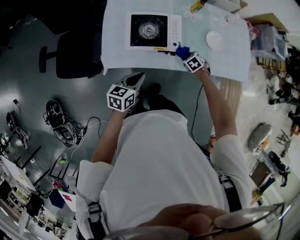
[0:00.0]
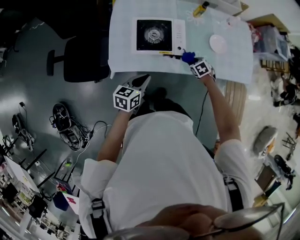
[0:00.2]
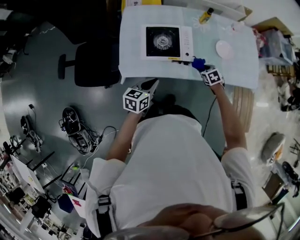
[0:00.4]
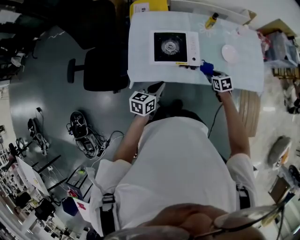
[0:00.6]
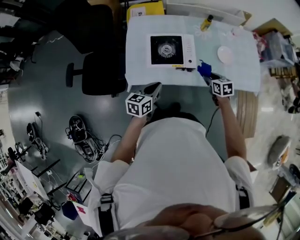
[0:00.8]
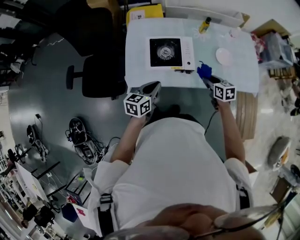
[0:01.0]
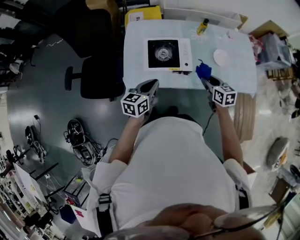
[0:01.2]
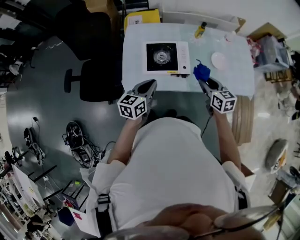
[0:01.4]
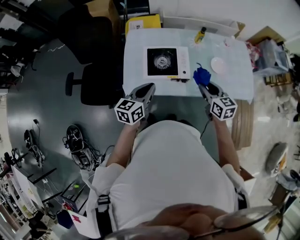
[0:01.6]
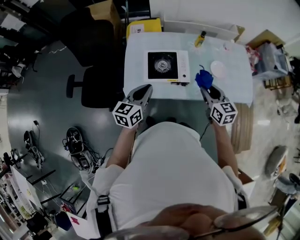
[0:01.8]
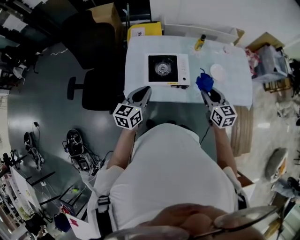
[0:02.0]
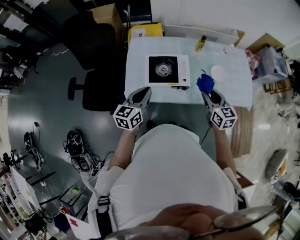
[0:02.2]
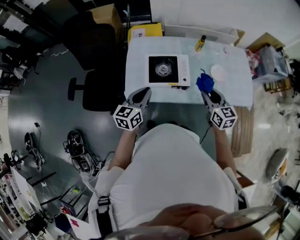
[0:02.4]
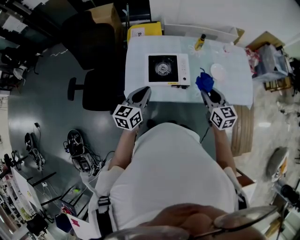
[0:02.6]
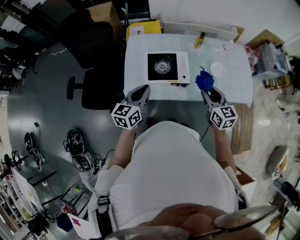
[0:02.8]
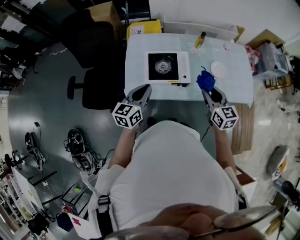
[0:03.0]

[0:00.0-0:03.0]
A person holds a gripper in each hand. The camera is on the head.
0:00.0 to 0:01.6: The left gripper heads upward, covering some 15 cm. Meanwhile the right gripper moves upward, some 30 cm, and angles its fingers upward, by roughly 50 degrees.
0:01.6 to 0:03.0: The grippers stay close to where they were, moving slightly.

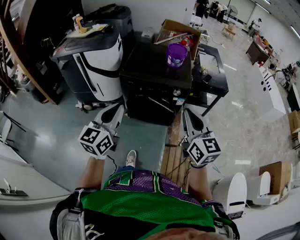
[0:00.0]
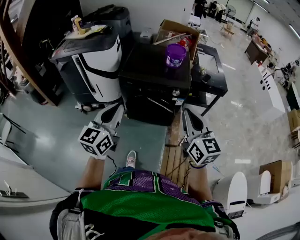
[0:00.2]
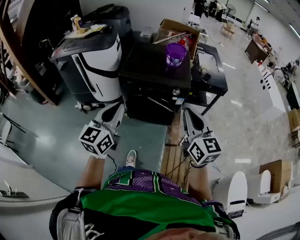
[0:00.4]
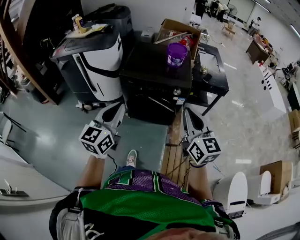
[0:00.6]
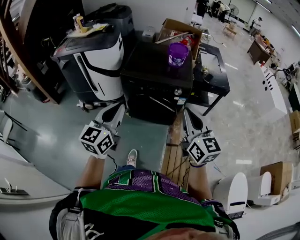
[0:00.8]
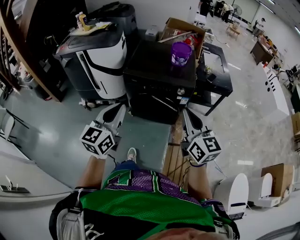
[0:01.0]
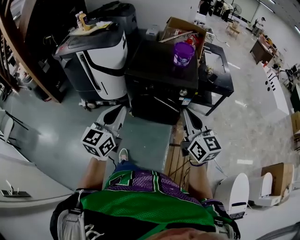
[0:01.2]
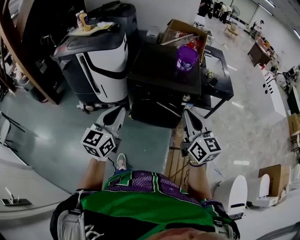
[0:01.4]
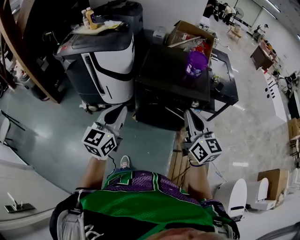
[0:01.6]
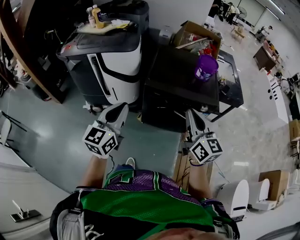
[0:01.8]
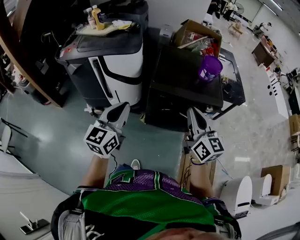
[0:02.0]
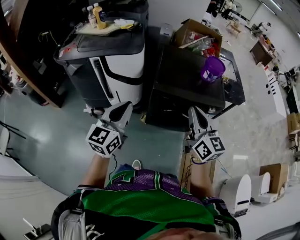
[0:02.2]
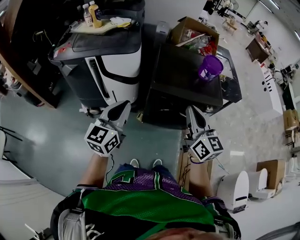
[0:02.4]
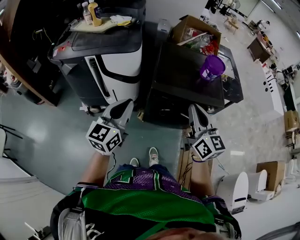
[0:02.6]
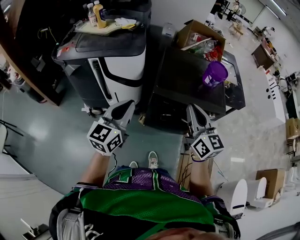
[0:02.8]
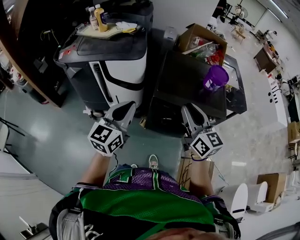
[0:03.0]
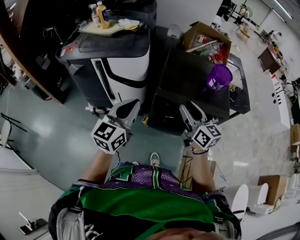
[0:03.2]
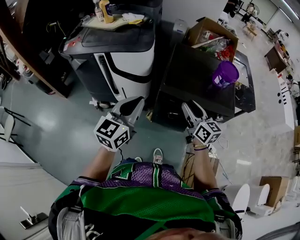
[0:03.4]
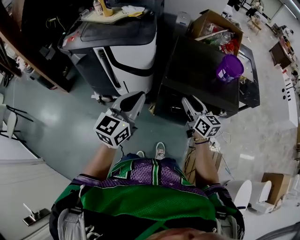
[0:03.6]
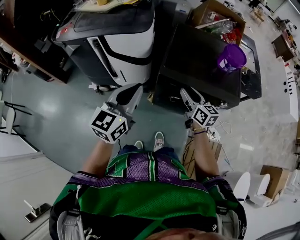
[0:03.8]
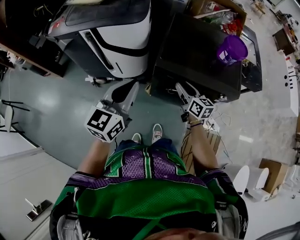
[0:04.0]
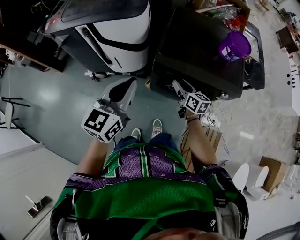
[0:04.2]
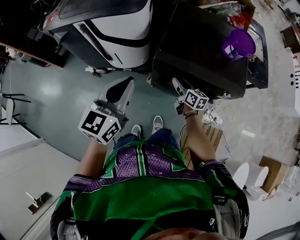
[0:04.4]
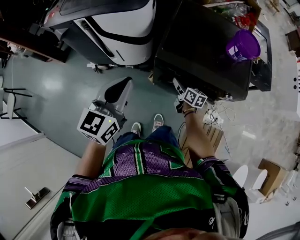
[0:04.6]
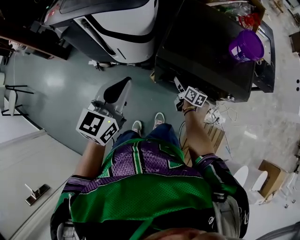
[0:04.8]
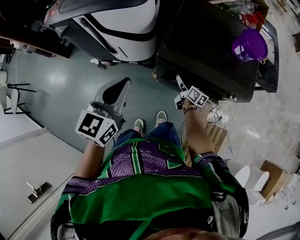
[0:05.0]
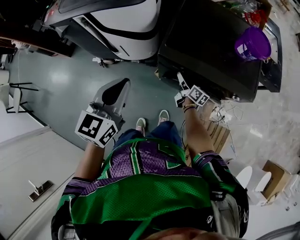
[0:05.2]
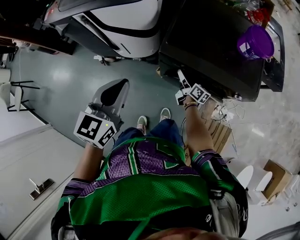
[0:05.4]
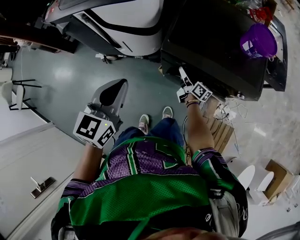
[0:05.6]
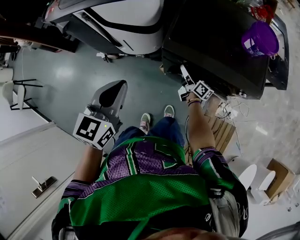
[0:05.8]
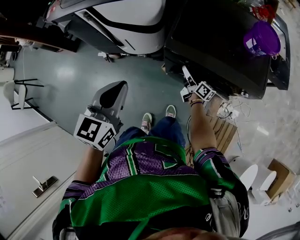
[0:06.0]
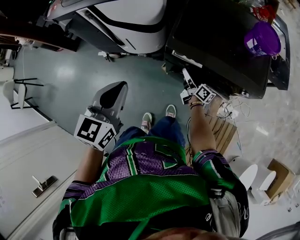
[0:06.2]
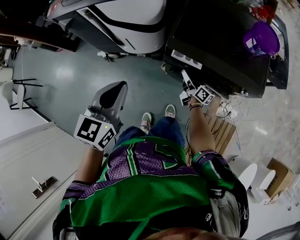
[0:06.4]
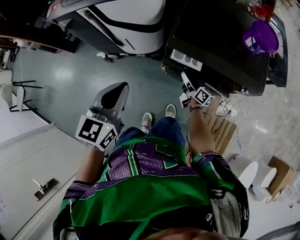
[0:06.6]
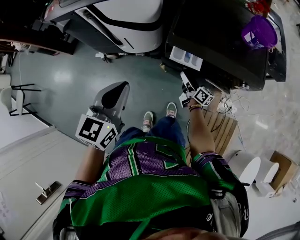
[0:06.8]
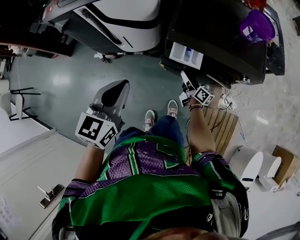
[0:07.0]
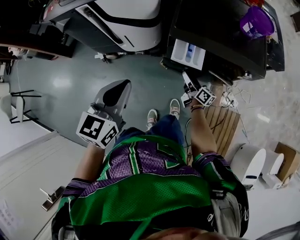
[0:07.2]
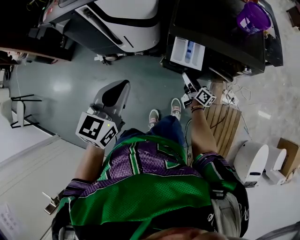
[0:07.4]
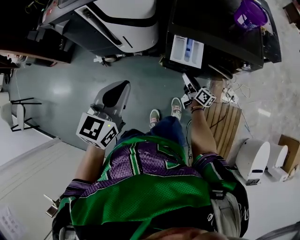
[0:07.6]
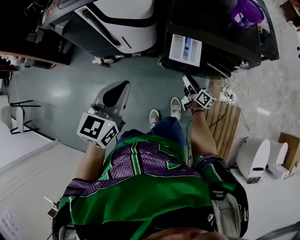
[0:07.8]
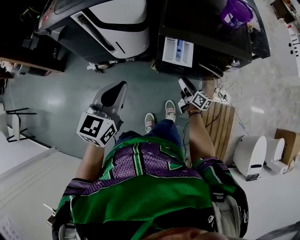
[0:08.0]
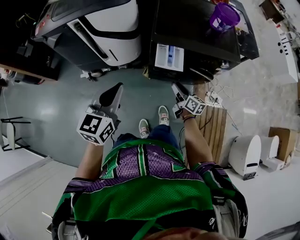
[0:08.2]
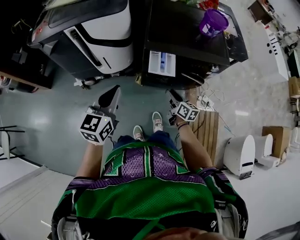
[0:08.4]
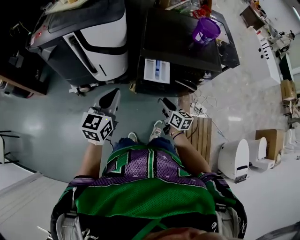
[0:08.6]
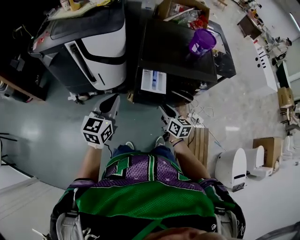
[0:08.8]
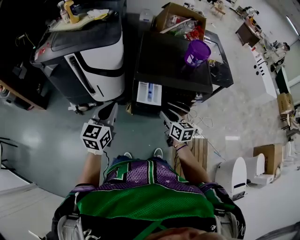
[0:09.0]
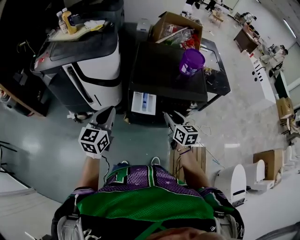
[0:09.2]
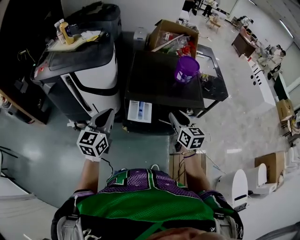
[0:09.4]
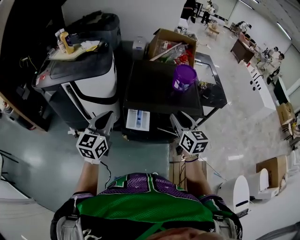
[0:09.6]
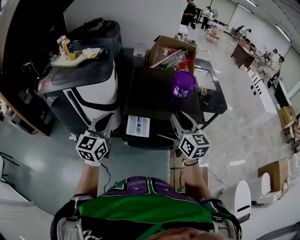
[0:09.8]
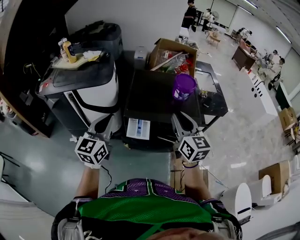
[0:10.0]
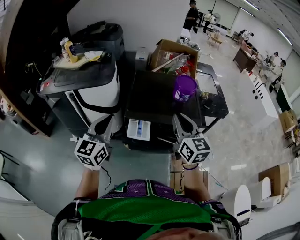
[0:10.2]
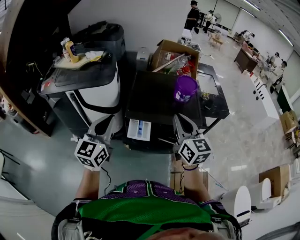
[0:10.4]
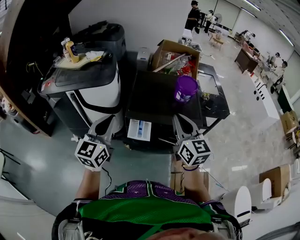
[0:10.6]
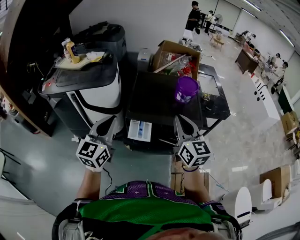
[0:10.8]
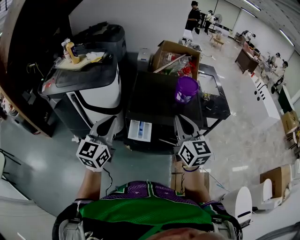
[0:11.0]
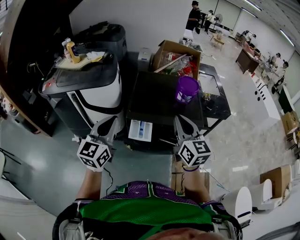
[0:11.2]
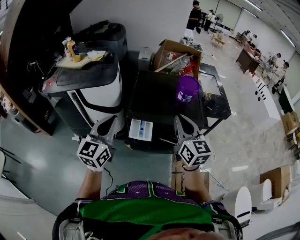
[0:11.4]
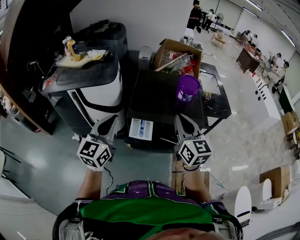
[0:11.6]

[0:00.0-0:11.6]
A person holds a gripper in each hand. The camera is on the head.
0:00.0 to 0:01.4: Both grippers move to the left and forward, approximately 10 cm.
0:01.4 to 0:02.8: The two grippers go approximately 30 cm to the left and forward.
0:02.8 to 0:04.4: The right gripper travels downward and forward by roughly 40 cm, rotates some 40 degrees, and opens, while the left gripper heads to the right, downward and forward, covering roughly 10 cm.
0:04.4 to 0:05.8: The left gripper goes about 5 cm downward. Meanwhile the right gripper travels downward by approximately 10 cm, and changes its angle by approximately 30 degrees.
0:05.8 to 0:07.2: The right gripper travels backward by roughly 10 cm; the left gripper moves to the left and backward, approximately 10 cm.
0:07.2 to 0:08.8: The right gripper heads upward and backward, covering roughly 20 cm, and rotates about 30 degrees.
0:08.8 to 0:10.2: The right gripper shifts some 35 cm upward and to the right, turns by about 30 degrees, and closes its fingers; the left gripper shifts approximately 20 cm upward and to the right.
0:10.2 to 0:11.6: Neither gripper changes place.

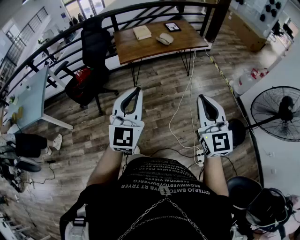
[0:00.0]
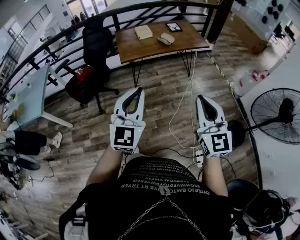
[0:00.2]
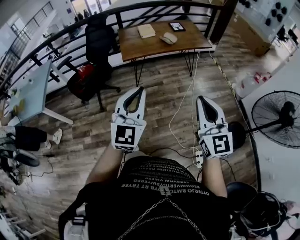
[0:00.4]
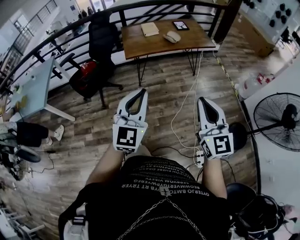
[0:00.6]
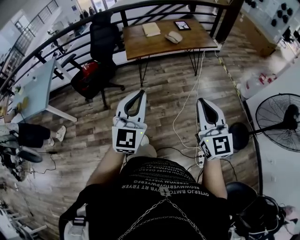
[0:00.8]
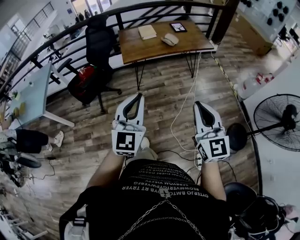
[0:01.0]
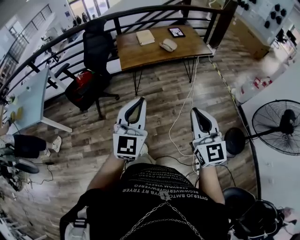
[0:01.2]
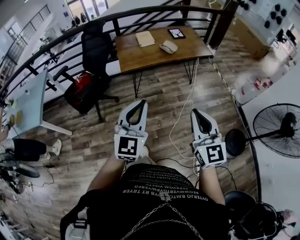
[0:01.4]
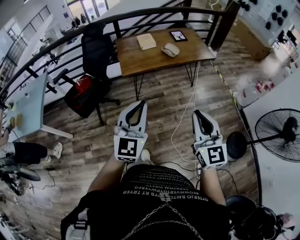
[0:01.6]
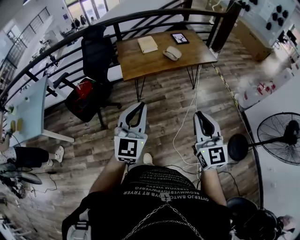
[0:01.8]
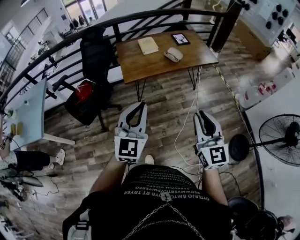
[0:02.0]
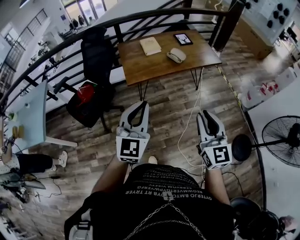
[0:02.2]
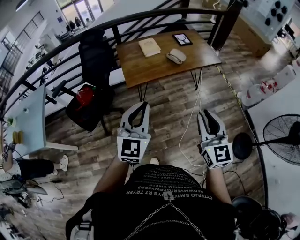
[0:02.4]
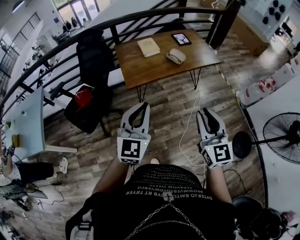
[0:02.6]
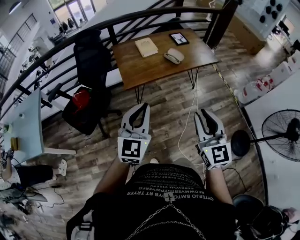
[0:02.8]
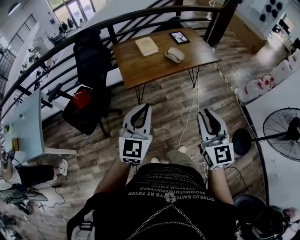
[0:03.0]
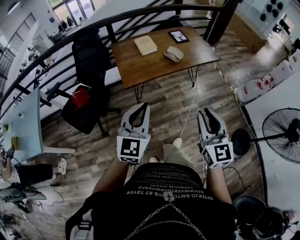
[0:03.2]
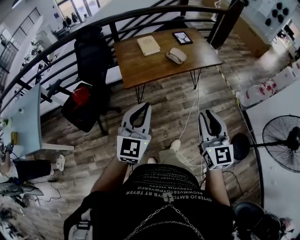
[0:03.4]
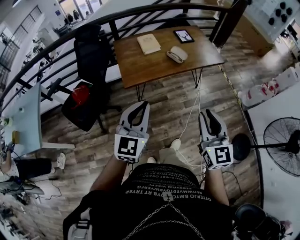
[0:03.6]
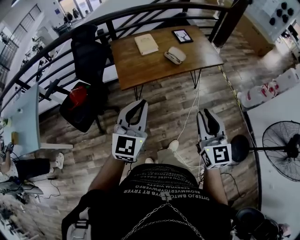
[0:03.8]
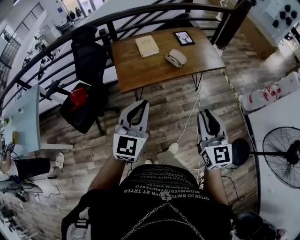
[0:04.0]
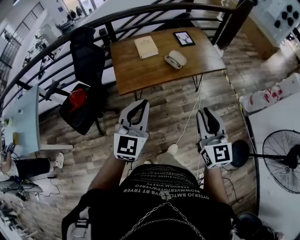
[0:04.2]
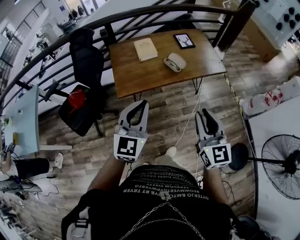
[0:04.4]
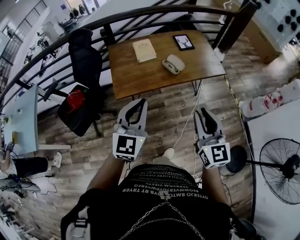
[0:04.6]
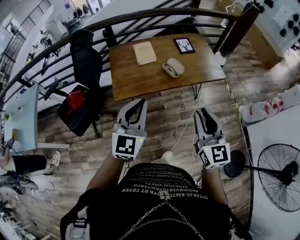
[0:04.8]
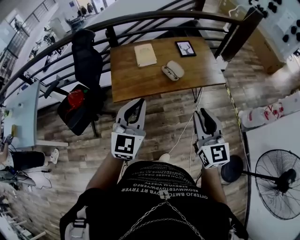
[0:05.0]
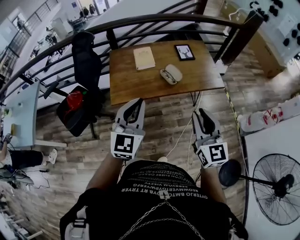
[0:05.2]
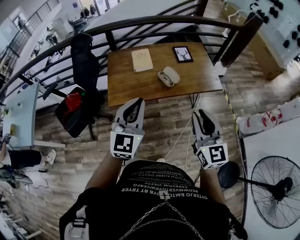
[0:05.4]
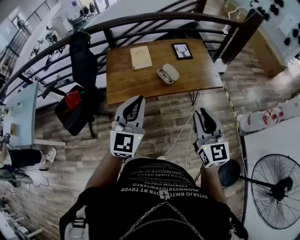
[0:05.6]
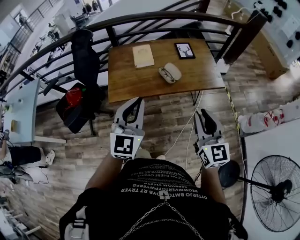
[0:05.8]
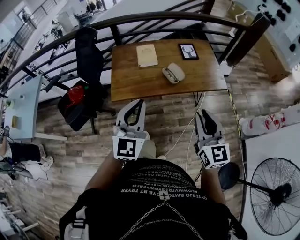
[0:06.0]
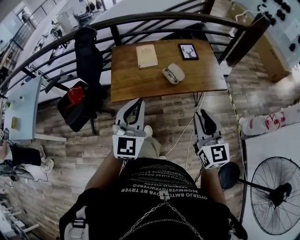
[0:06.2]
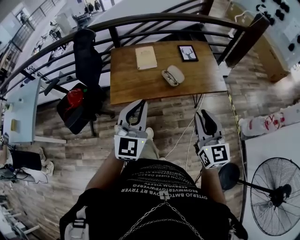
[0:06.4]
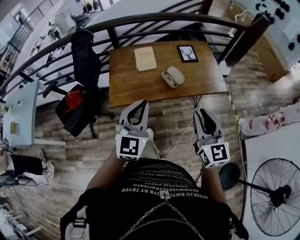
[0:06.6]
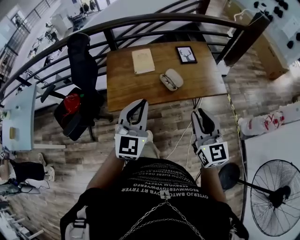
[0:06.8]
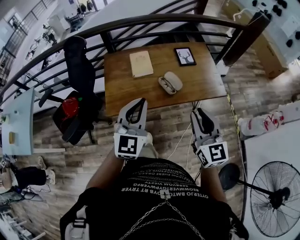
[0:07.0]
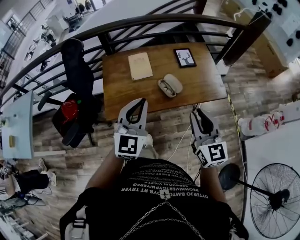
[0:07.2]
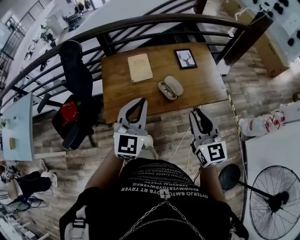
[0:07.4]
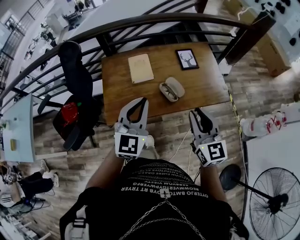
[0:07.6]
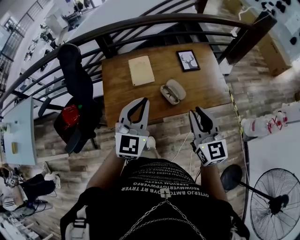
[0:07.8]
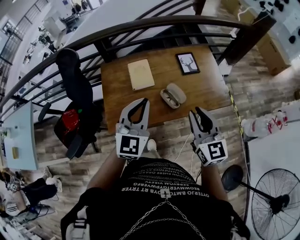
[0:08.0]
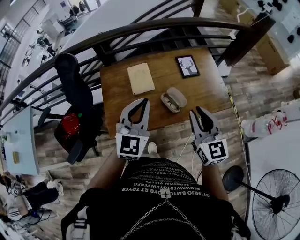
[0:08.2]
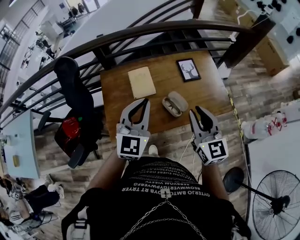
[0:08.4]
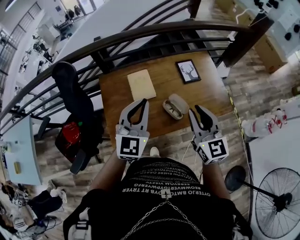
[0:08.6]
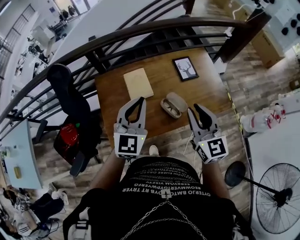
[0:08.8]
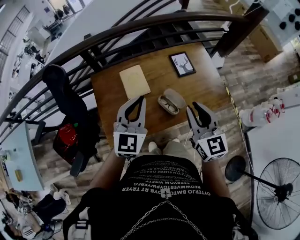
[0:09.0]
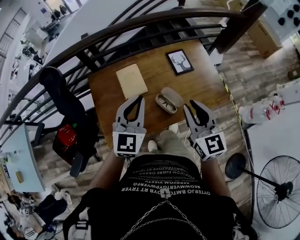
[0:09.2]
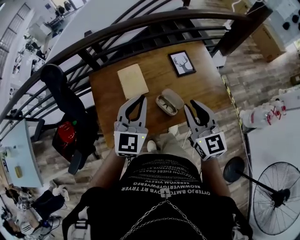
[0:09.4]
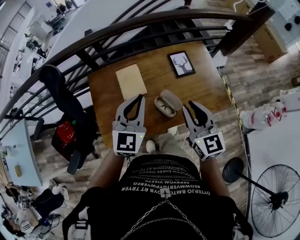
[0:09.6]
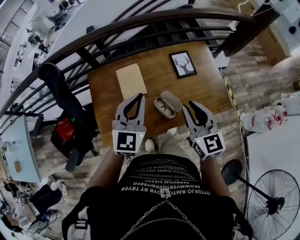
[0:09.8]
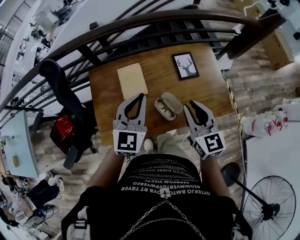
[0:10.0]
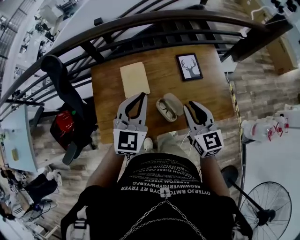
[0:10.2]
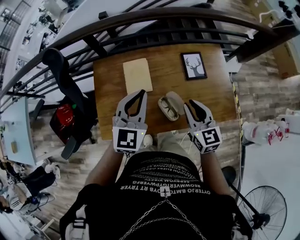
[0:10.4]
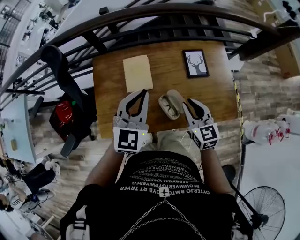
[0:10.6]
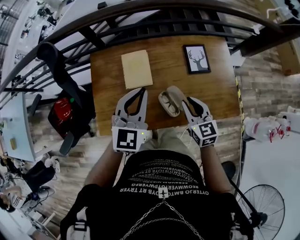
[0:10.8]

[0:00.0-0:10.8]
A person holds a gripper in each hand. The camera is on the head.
0:00.0 to 0:01.6: Both grippers travel together forward, approximately 10 cm.
0:01.6 to 0:03.0: Both grippers travel together forward and to the left, roughly 15 cm.
0:03.0 to 0:04.6: Both grippers travel together forward and to the right, roughly 20 cm.
0:04.6 to 0:06.2: The right gripper goes about 10 cm to the right and forward; the left gripper moves some 5 cm.
0:06.2 to 0:07.8: The grippers both shift forward by approximately 20 cm.
0:07.8 to 0:09.2: Both grippers move forward, some 10 cm.
0:09.2 to 0:10.8: The left gripper travels forward and downward by roughly 10 cm. The right gripper moves downward and forward, some 20 cm, and changes its angle by roughly 20 degrees.
